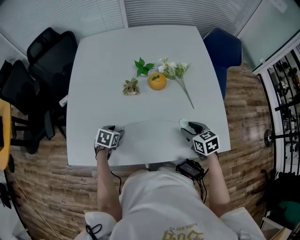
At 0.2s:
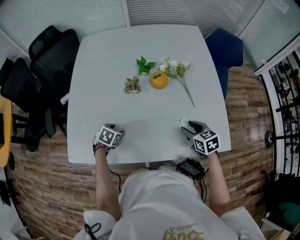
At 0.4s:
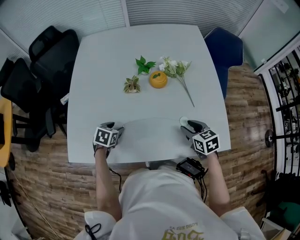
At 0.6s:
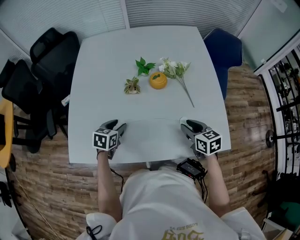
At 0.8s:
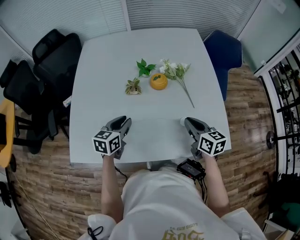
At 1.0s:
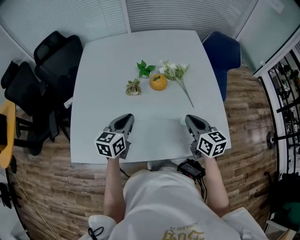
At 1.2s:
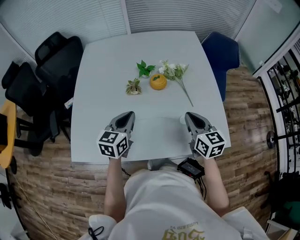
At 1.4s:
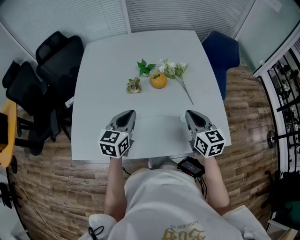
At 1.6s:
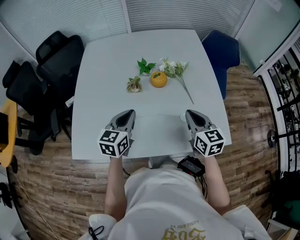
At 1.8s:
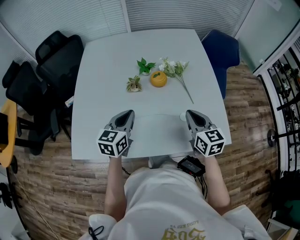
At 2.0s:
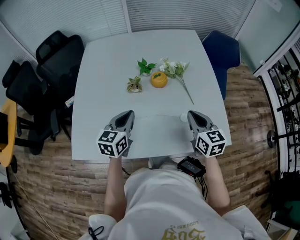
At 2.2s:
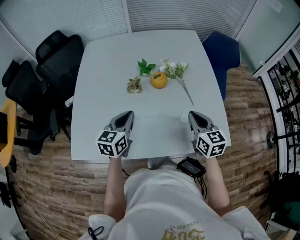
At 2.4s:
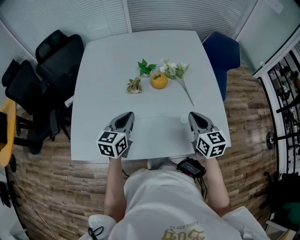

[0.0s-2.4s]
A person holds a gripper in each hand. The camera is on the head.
0.0s to 1.2s: The left gripper is displaced upward and to the right by some 25 cm, points its fingers roughly 40 degrees further upward, and closes its fingers. The right gripper goes roughly 15 cm upward, changes its angle by roughly 30 degrees, and closes its fingers.
1.2s to 2.4s: There are only small adjustments of the grippers.

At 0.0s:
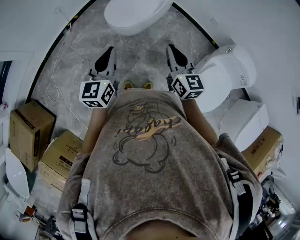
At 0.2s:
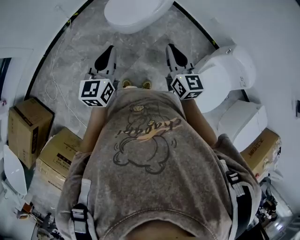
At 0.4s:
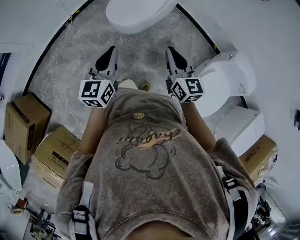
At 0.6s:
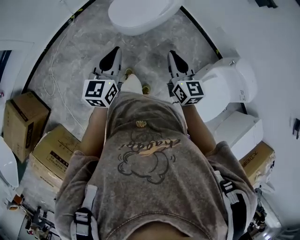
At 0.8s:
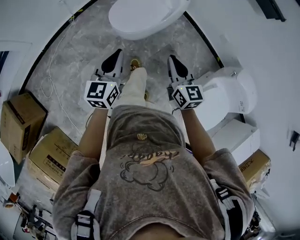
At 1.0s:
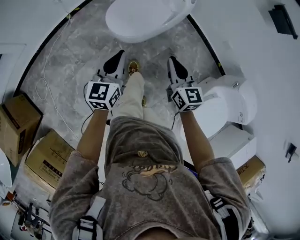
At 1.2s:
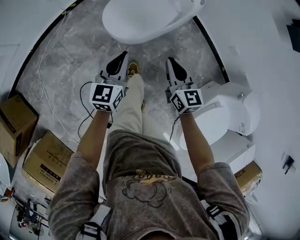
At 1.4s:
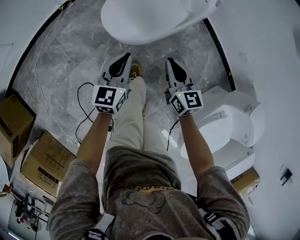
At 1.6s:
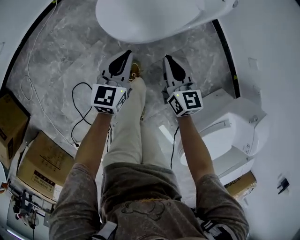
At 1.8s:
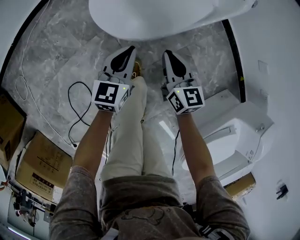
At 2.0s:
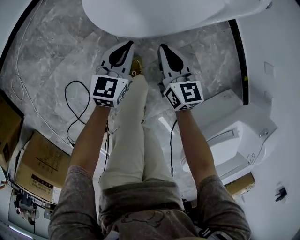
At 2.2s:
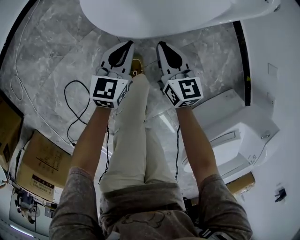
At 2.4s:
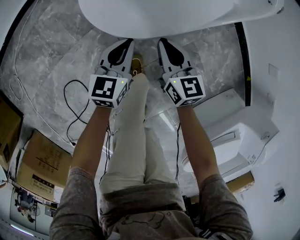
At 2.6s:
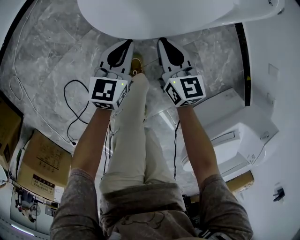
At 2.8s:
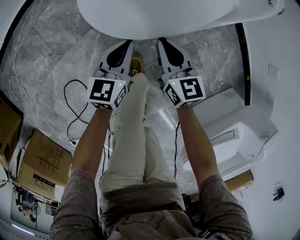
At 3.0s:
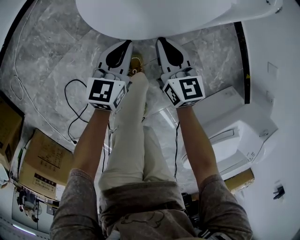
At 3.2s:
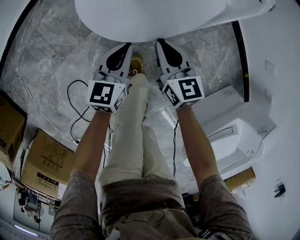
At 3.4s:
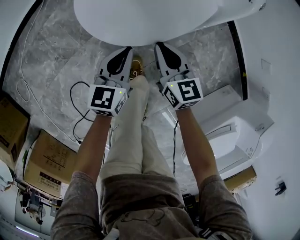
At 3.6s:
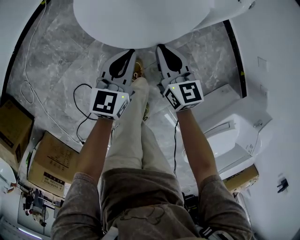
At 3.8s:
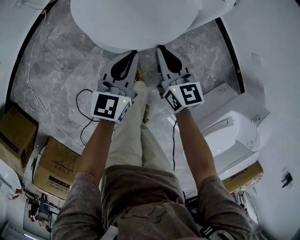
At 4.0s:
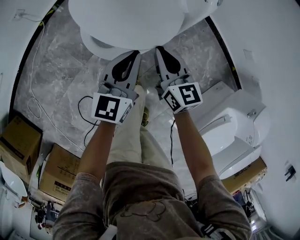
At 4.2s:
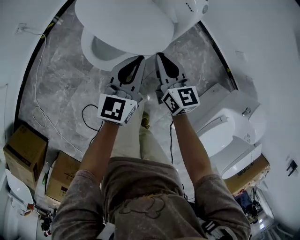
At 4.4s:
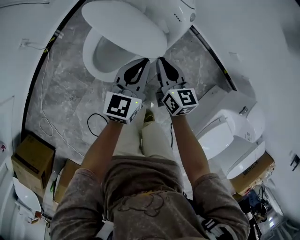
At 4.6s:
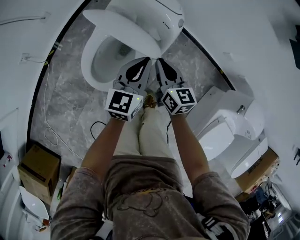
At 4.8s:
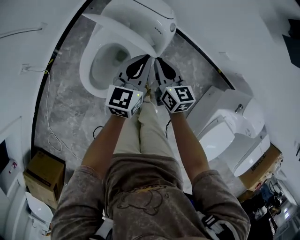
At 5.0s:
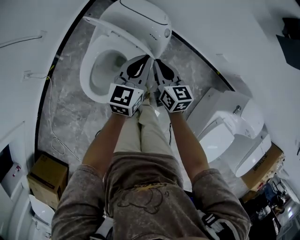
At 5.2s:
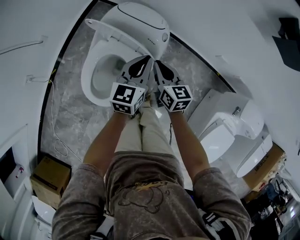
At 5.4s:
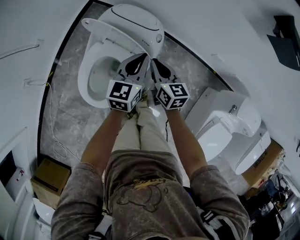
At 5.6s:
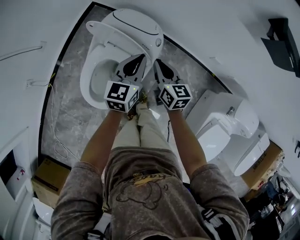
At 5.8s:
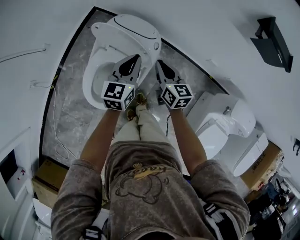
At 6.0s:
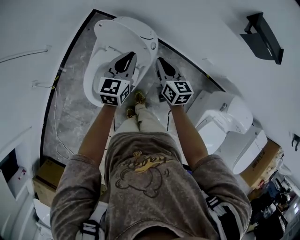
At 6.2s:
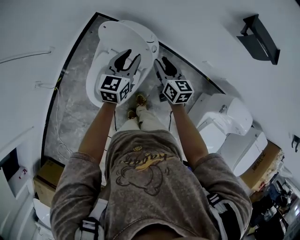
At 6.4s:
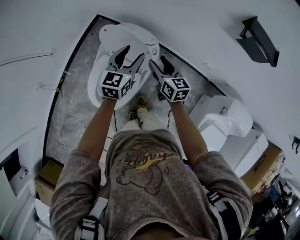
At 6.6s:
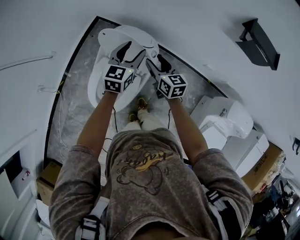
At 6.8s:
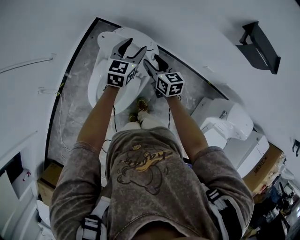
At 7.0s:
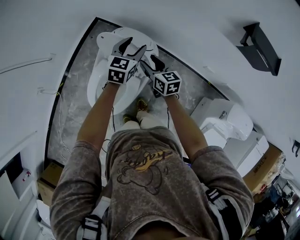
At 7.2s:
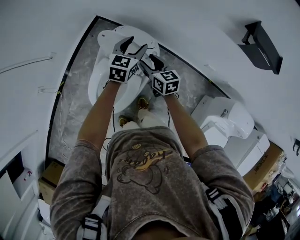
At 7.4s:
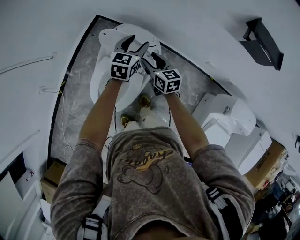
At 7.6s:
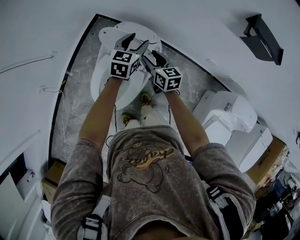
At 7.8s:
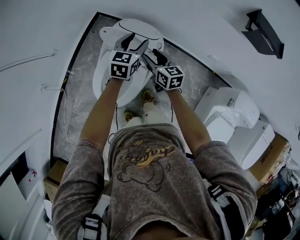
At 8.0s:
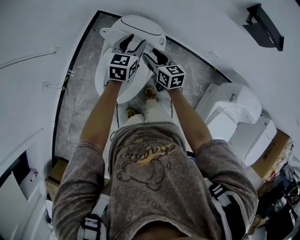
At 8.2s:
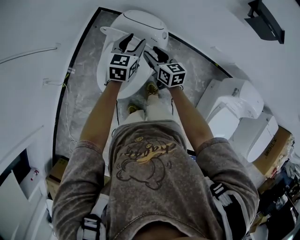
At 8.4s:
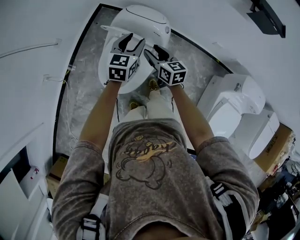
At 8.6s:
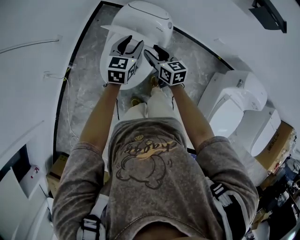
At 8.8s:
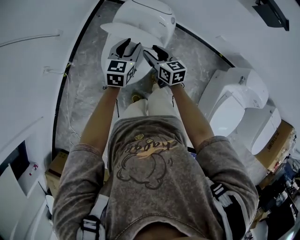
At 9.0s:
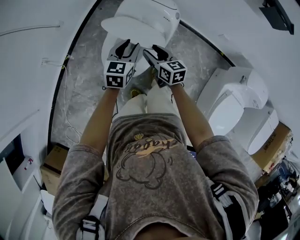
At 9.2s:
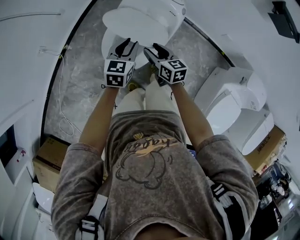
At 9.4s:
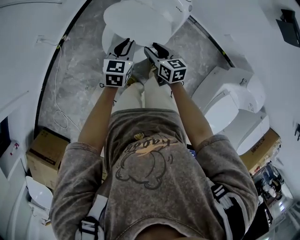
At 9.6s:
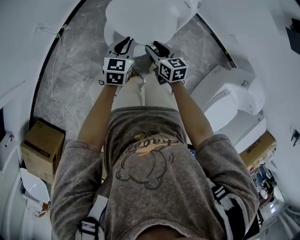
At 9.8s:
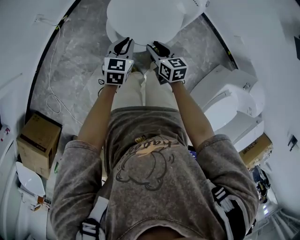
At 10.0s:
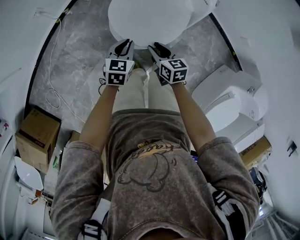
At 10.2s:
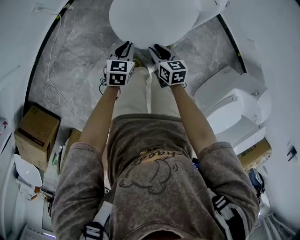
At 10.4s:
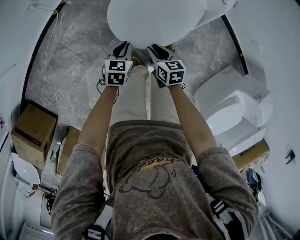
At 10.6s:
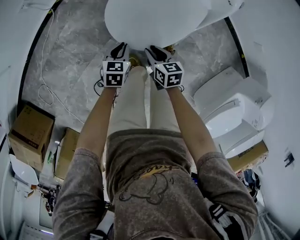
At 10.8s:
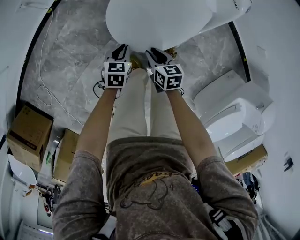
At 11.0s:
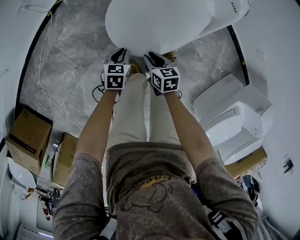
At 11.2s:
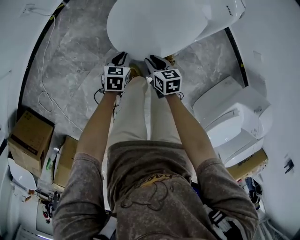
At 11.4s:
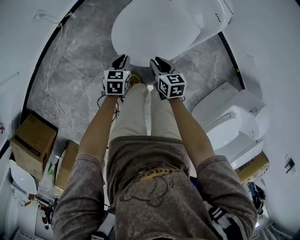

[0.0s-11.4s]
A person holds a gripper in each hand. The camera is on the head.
0.0s to 1.4s: Both grippers move downward and forward, approximately 40 cm.
1.4s to 2.8s: The left gripper shifts about 25 cm downward; the right gripper shifts approximately 25 cm downward and forward.
2.8s to 4.2s: The two grippers go about 25 cm upward and to the right.
4.2s to 5.6s: The two grippers go approximately 25 cm forward, to the right and upward.
5.6s to 7.2s: The right gripper goes about 5 cm forward, and opens up, while the left gripper goes about 10 cm forward, and opens.
7.2s to 8.6s: Both grippers travel together backward and to the left, approximately 20 cm.
8.6s to 10.0s: Both grippers travel together downward, to the left and backward, about 30 cm. The right gripper rotates roughly 20 degrees. Meanwhile the left gripper turns by roughly 30 degrees, and closes.
10.0s to 11.4s: The two grippers go some 10 cm downward.

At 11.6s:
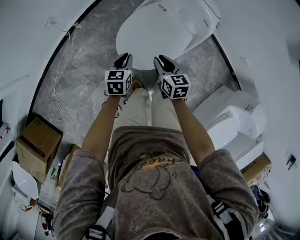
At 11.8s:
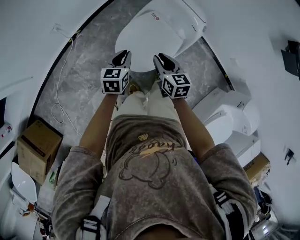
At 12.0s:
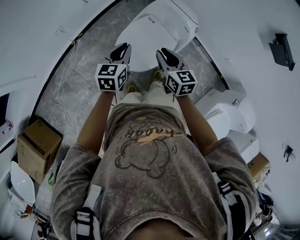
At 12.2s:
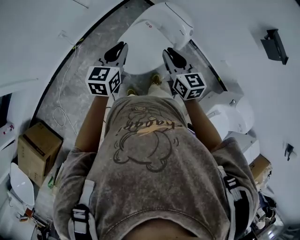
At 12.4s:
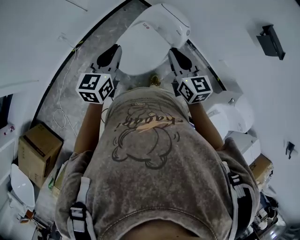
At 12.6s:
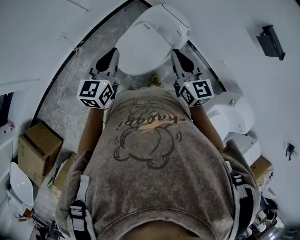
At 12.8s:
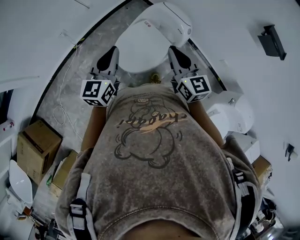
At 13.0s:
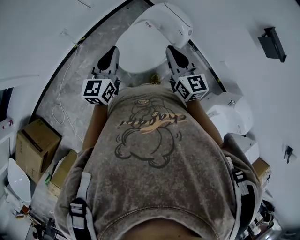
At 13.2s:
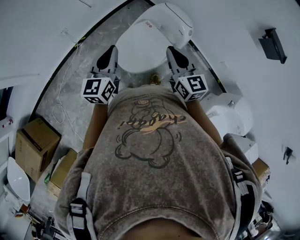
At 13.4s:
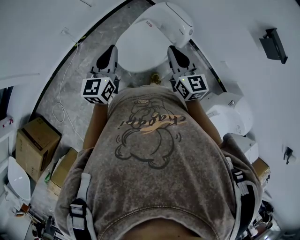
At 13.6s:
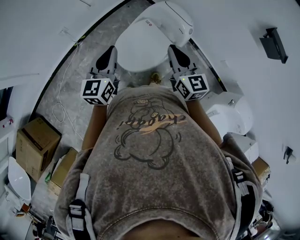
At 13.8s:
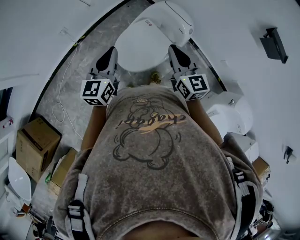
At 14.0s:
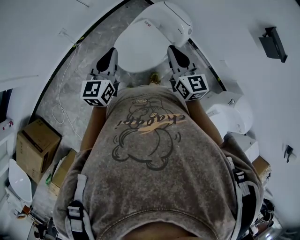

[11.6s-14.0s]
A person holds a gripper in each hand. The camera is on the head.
11.6s to 12.8s: The two grippers go approximately 35 cm upward. The left gripper angles its fingers upward, by roughly 40 degrees. Meanwhile the right gripper rotates about 30 degrees.
12.8s to 14.0s: The grippers make only small movements.

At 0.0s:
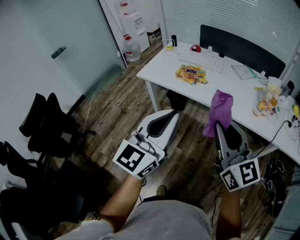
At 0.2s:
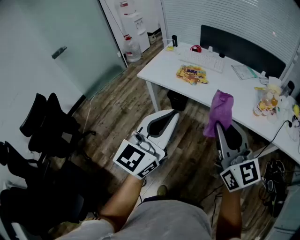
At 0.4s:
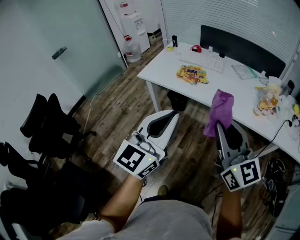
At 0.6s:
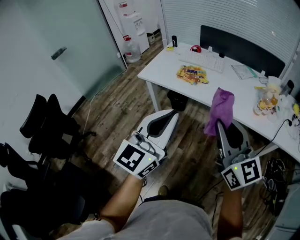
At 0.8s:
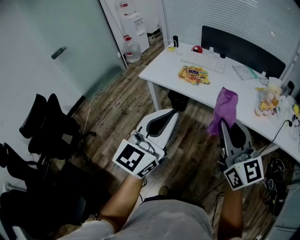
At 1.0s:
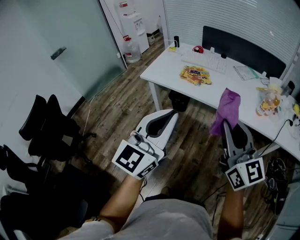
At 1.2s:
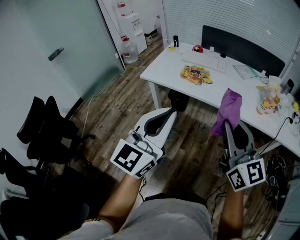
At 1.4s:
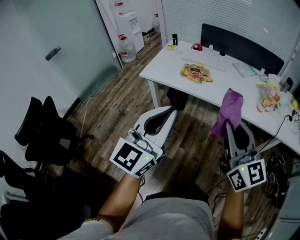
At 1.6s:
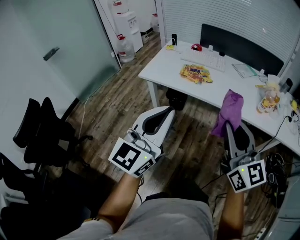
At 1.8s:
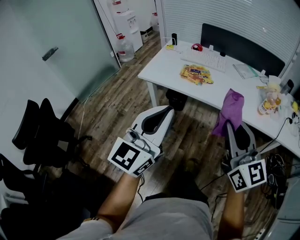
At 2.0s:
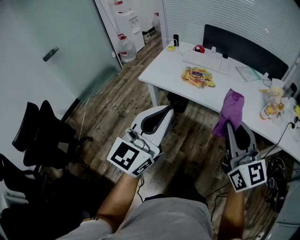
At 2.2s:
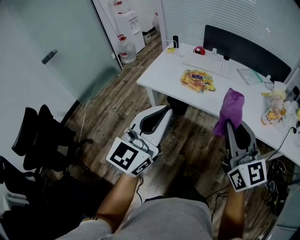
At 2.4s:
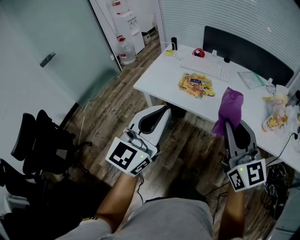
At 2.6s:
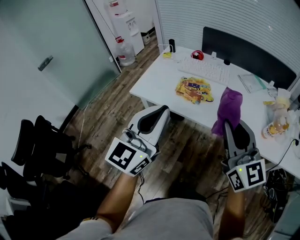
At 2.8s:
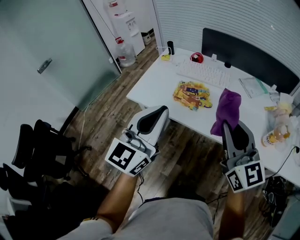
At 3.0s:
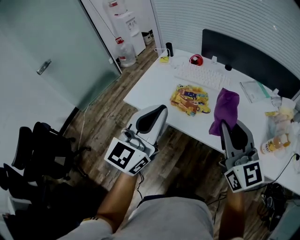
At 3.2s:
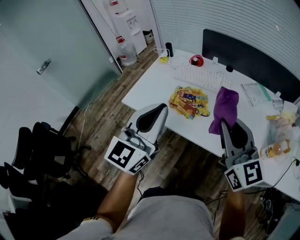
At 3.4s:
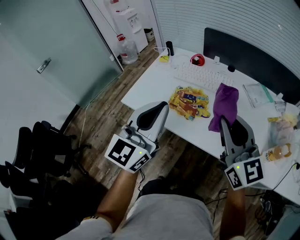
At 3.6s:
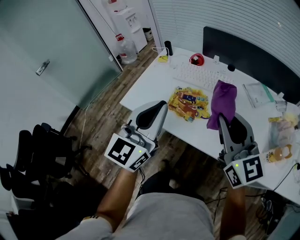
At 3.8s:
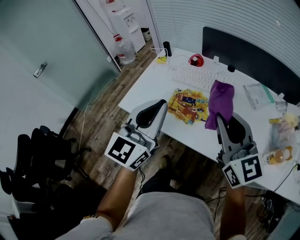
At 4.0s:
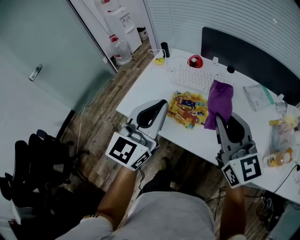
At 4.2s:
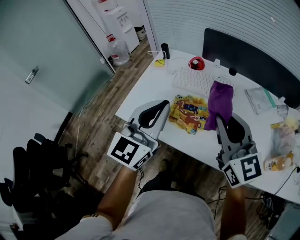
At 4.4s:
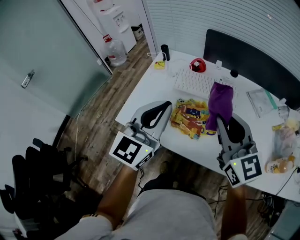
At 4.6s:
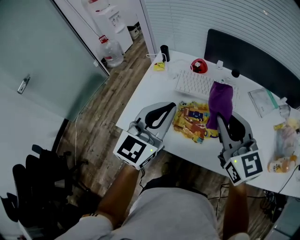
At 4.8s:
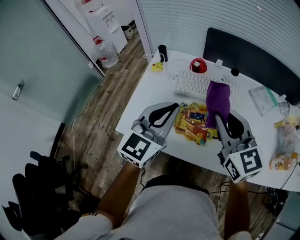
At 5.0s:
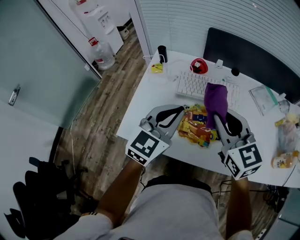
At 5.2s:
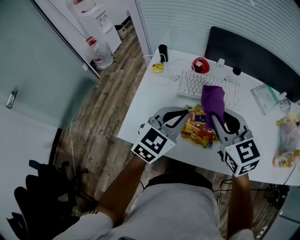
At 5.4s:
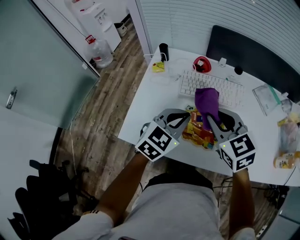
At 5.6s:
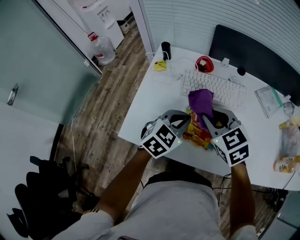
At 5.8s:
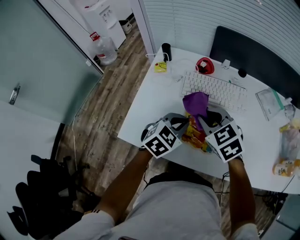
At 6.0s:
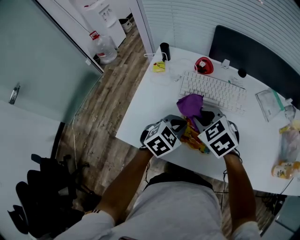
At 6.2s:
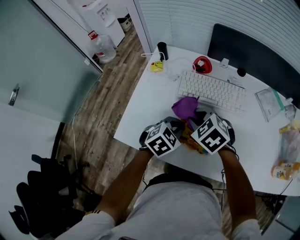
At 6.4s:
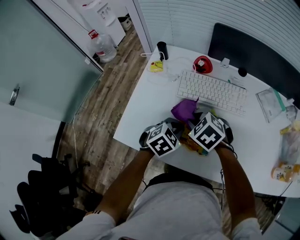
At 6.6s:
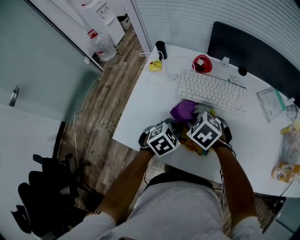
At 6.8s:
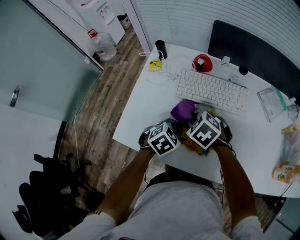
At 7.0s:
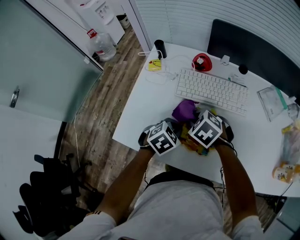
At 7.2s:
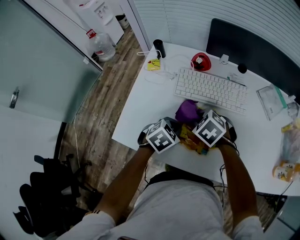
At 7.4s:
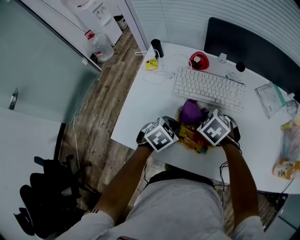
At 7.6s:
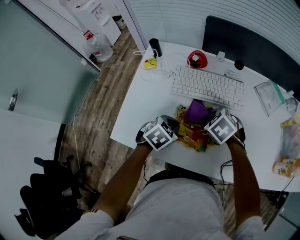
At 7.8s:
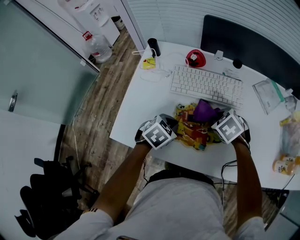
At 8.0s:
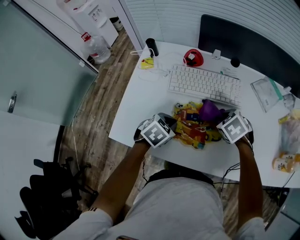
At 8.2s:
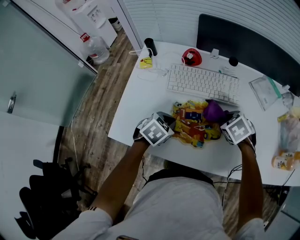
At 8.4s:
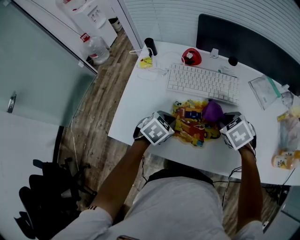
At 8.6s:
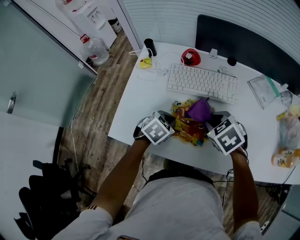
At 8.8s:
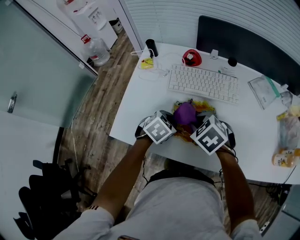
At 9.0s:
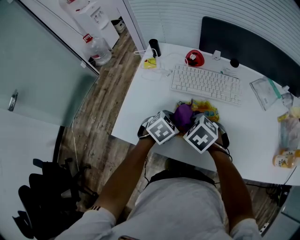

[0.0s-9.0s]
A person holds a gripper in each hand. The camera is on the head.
0.0s to 1.6s: The left gripper shifts approximately 10 cm to the left; the right gripper shifts roughly 5 cm to the left.
1.6s to 3.0s: Both grippers move forward, approximately 30 cm.
3.0s to 4.4s: Both grippers move forward, roughly 20 cm.
4.4s to 6.0s: The left gripper is displaced downward by some 25 cm, and tilts its fingers approximately 50 degrees downward. The right gripper shifts approximately 25 cm downward, to the left and forward, and tilts its fingers roughly 50 degrees downward.
6.0s to 7.6s: The right gripper moves downward and to the right, about 15 cm, and swivels approximately 20 degrees. Meanwhile the left gripper is displaced downward by about 5 cm.
7.6s to 9.0s: The right gripper travels backward and to the left by approximately 10 cm.
